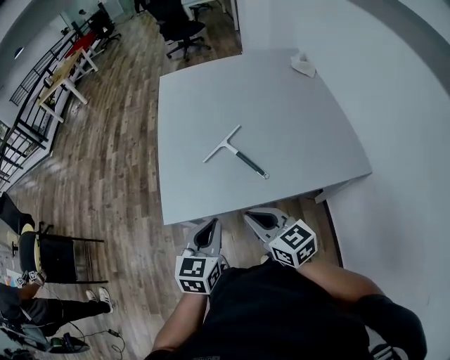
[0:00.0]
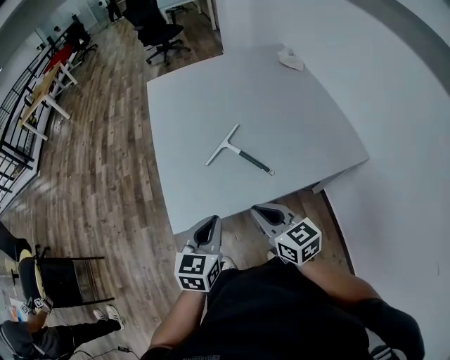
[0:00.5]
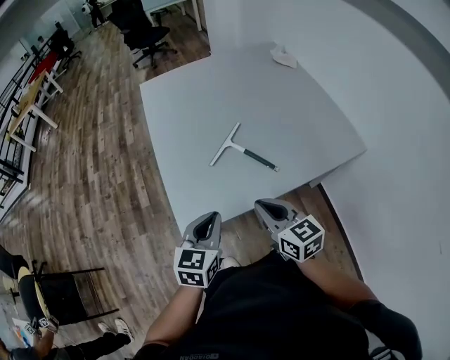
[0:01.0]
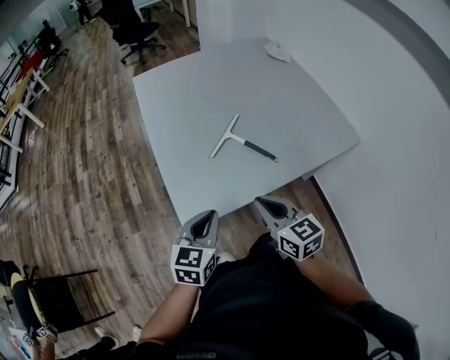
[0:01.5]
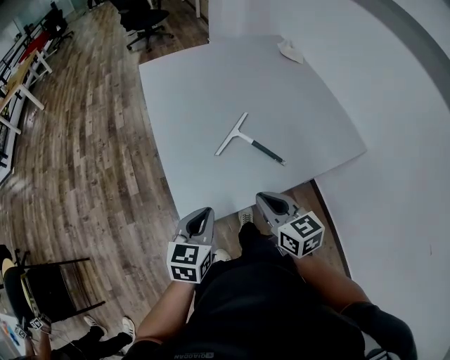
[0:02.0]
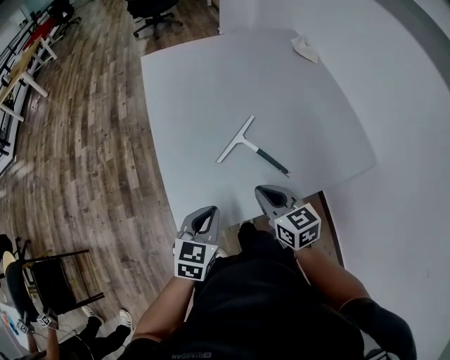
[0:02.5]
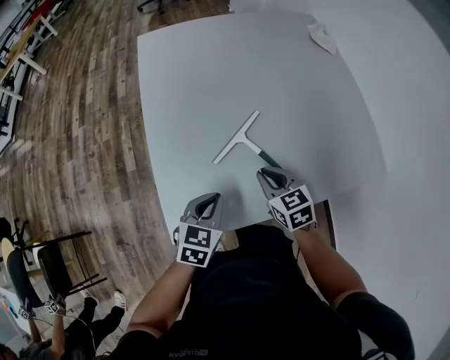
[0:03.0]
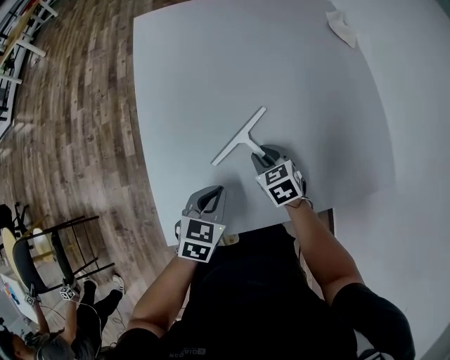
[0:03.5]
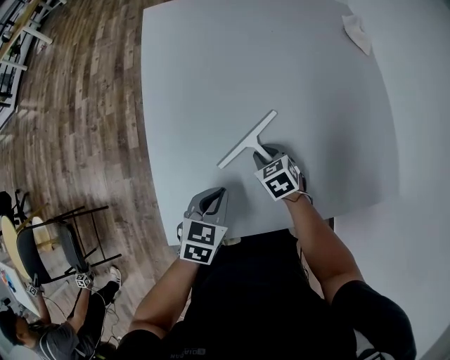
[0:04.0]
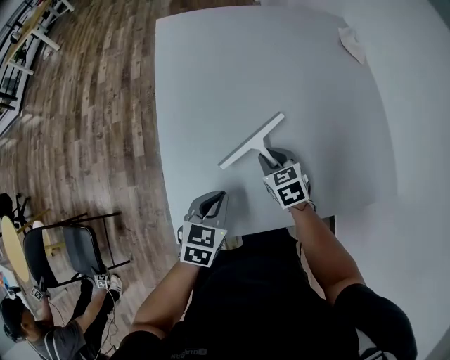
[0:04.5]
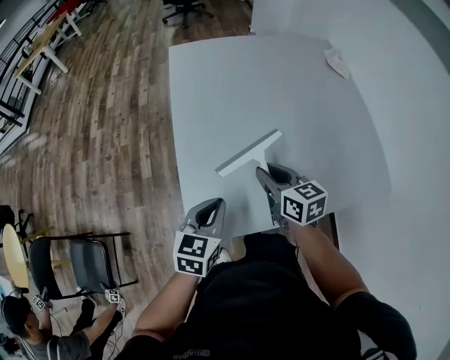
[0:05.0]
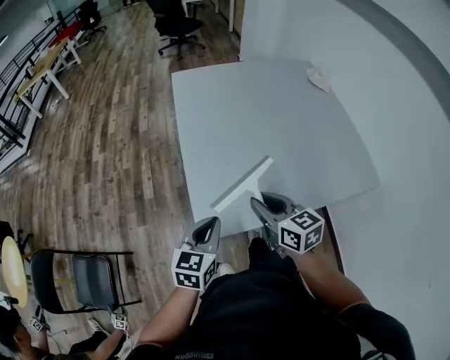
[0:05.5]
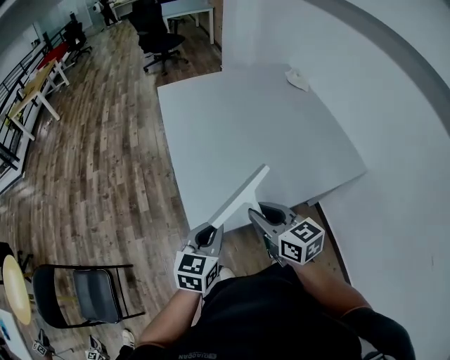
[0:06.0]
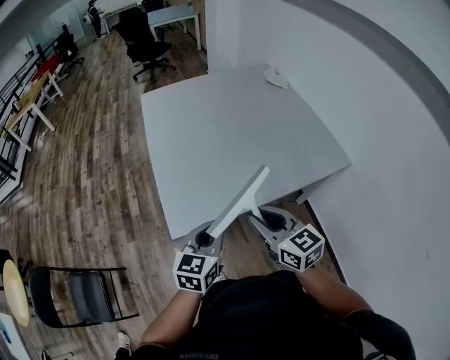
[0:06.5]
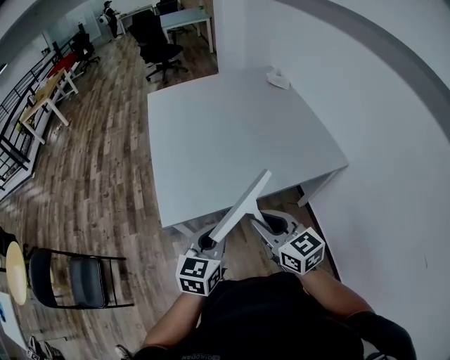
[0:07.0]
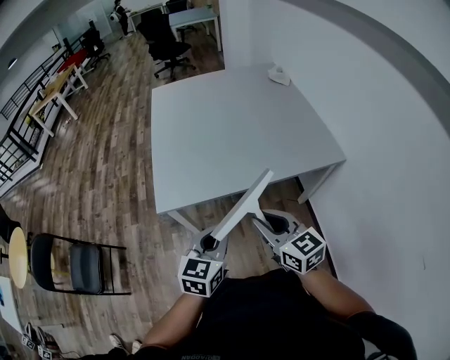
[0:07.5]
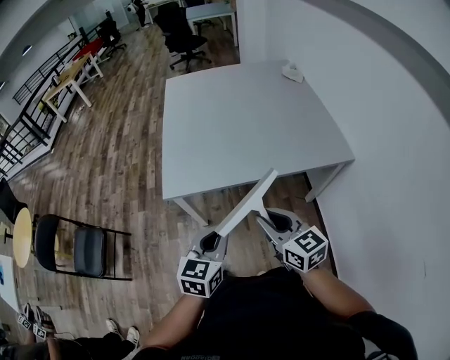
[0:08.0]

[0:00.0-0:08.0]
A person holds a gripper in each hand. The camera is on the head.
0:00.0 to 0:02.0: The two grippers go approximately 15 cm to the left. The right gripper rotates about 20 degrees.
0:02.0 to 0:04.0: The right gripper goes roughly 35 cm forward and downward, angles its fingers downward, by about 30 degrees, and opens. Meanwhile the left gripper moves forward, downward and to the right, approximately 25 cm.
0:04.0 to 0:06.0: The left gripper moves backward, upward and to the left, roughly 25 cm, and turns by about 20 degrees. Meanwhile the right gripper is displaced upward and backward by about 40 cm, and tips its fingers upward by approximately 40 degrees.
0:06.0 to 0:08.0: The grippers both shift backward and to the right by roughly 30 cm.

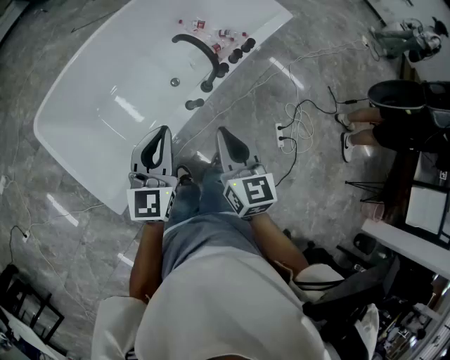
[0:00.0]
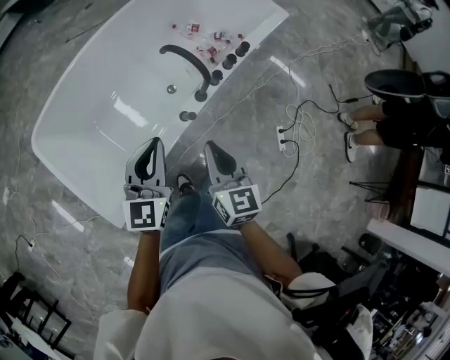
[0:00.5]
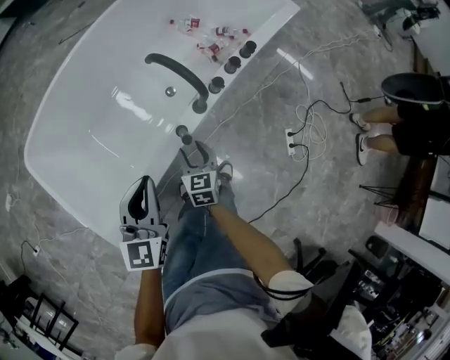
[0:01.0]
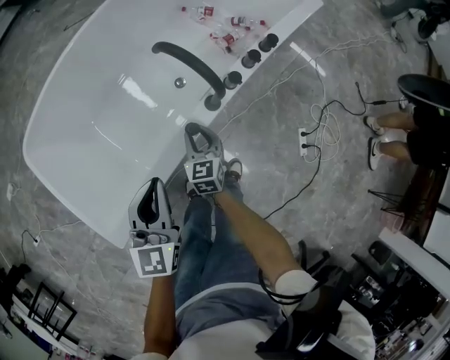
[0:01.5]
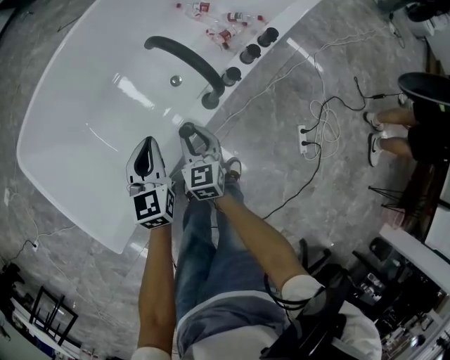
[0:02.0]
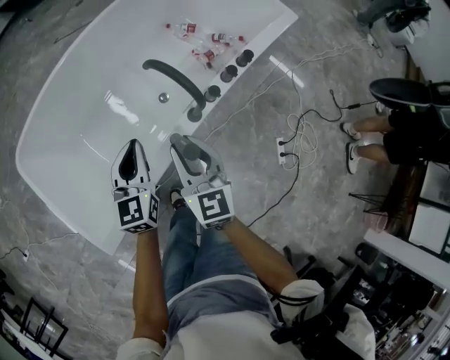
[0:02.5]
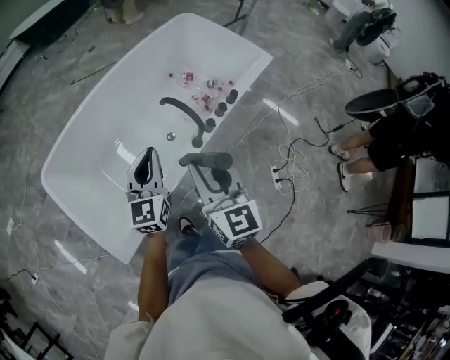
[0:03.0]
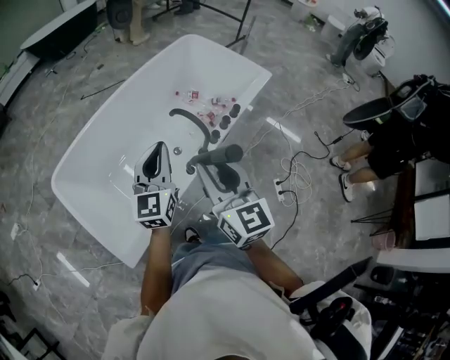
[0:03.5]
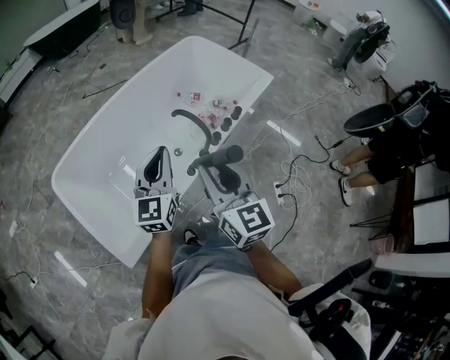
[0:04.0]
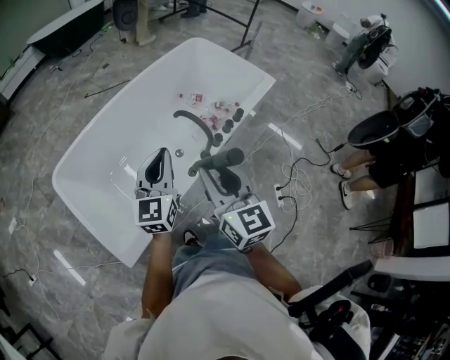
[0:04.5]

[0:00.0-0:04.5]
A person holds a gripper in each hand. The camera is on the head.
0:00.0 to 0:02.0: The two grippers go about 50 cm downward and forward. The right gripper opens, while the left gripper changes its angle by some 20 degrees.
0:02.0 to 0:04.5: Both grippers travel together upward and backward, some 70 cm. The right gripper turns by some 30 degrees. Meanwhile the left gripper turns by some 30 degrees.

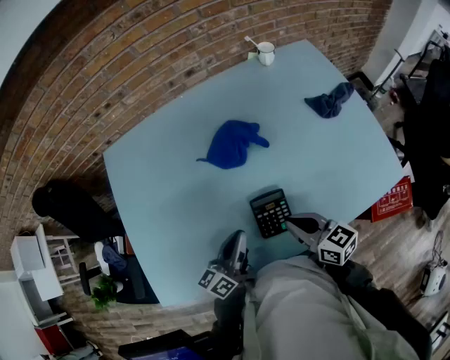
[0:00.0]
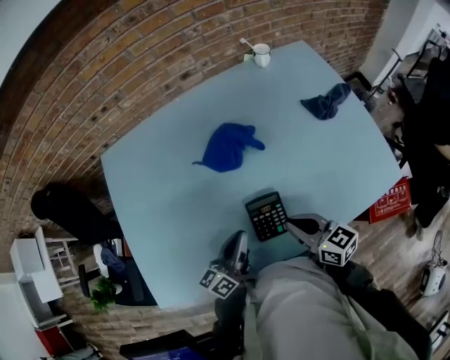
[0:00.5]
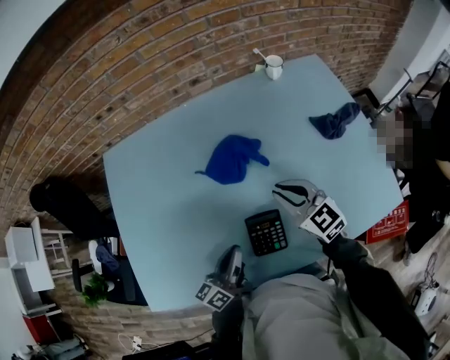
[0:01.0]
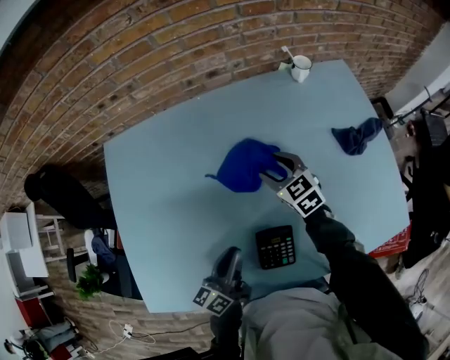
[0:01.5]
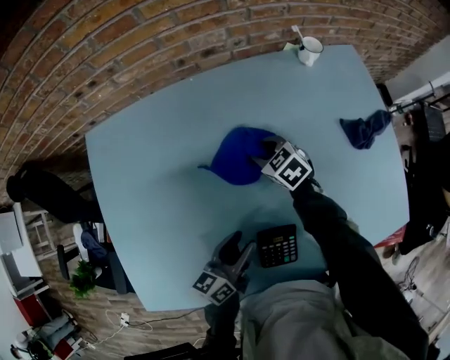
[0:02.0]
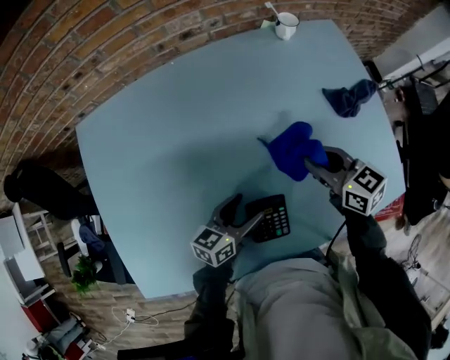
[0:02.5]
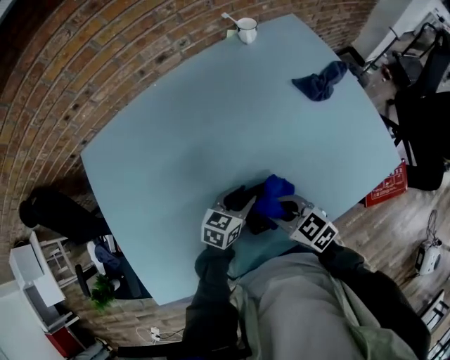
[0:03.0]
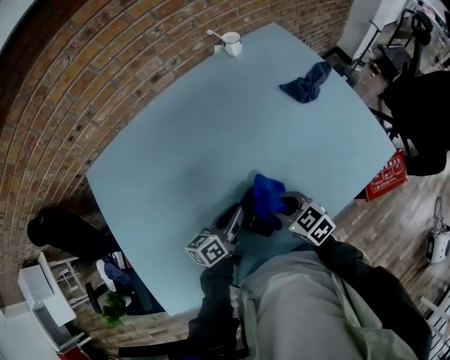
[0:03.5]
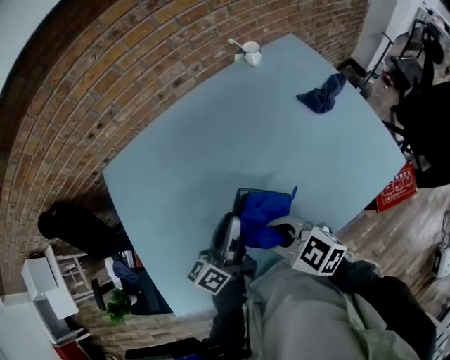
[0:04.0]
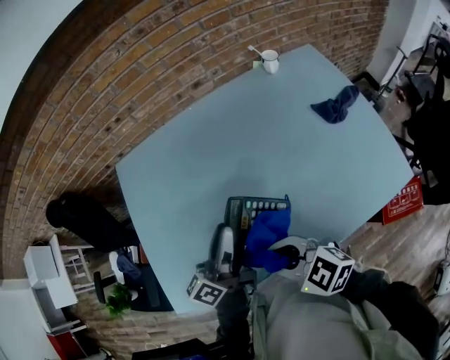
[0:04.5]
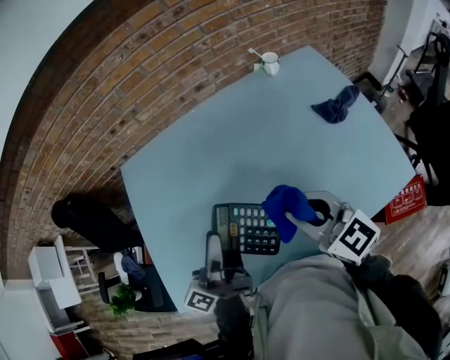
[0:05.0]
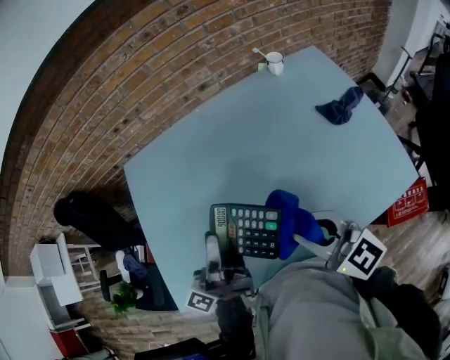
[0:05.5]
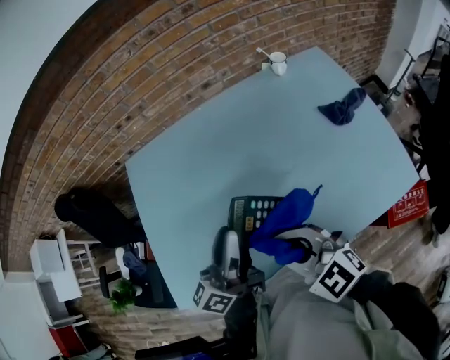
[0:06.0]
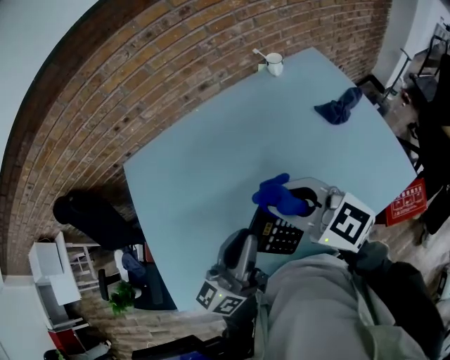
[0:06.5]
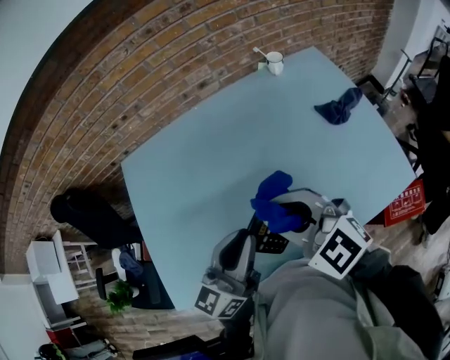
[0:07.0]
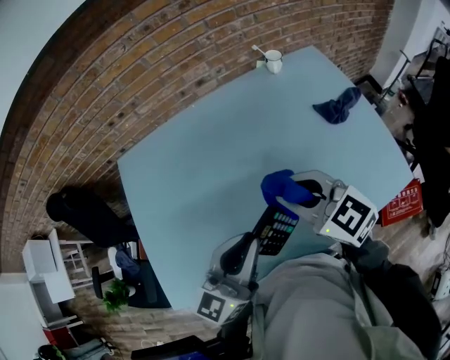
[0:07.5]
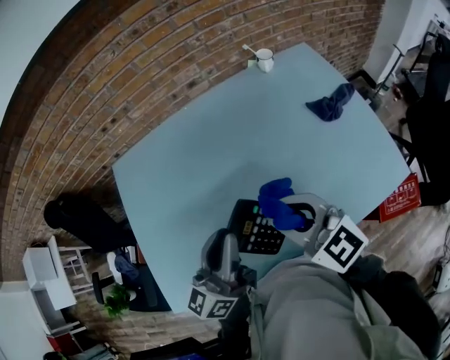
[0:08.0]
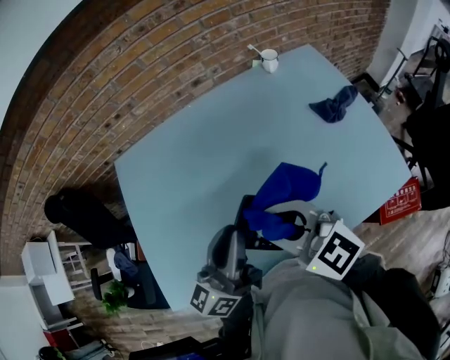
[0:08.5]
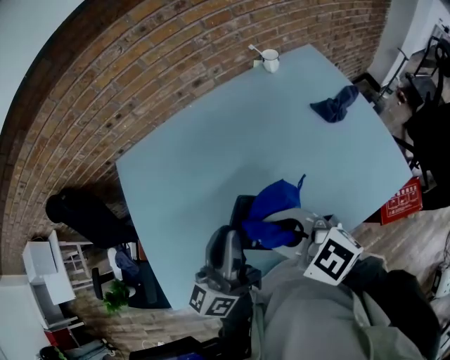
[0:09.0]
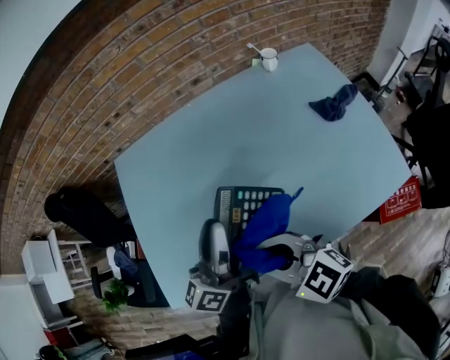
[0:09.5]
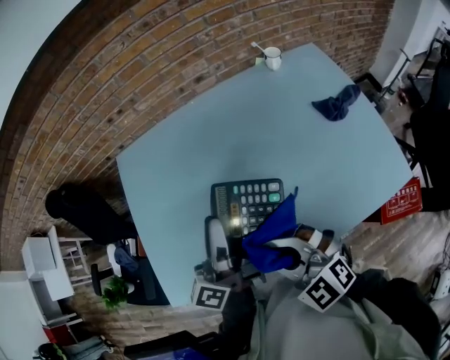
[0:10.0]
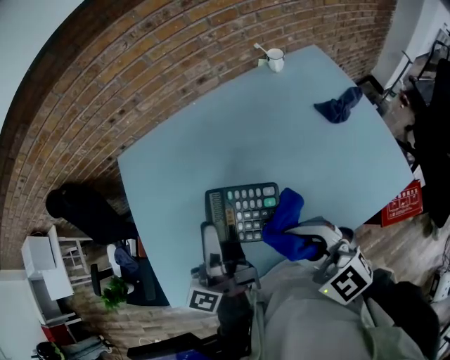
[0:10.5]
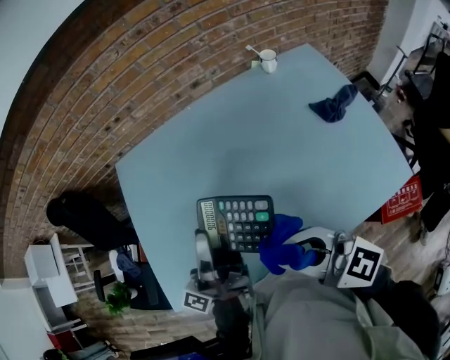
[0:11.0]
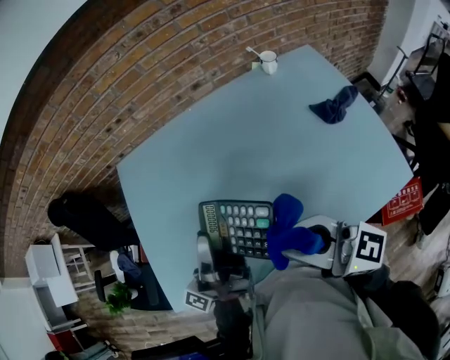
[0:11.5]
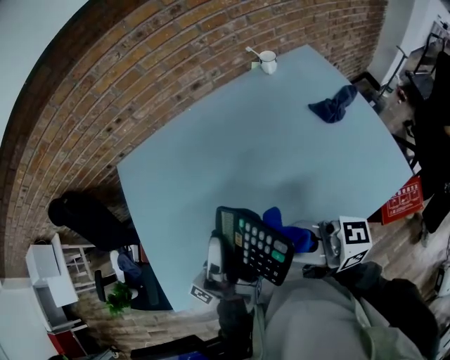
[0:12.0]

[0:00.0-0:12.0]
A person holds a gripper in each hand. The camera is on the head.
0:00.0 to 0:02.0: The left gripper heads forward and downward, covering about 10 cm, and opens, while the right gripper is displaced forward by roughly 35 cm, rotates about 40 degrees, and opens.
0:02.0 to 0:04.0: The right gripper heads backward and upward, covering approximately 35 cm, and changes its angle by roughly 20 degrees. The left gripper is displaced upward by some 15 cm, and closes.
0:04.0 to 0:06.0: The grippers both shift upward by approximately 10 cm. The right gripper reaches about 5 cm to the right, then returns.
0:06.0 to 0:08.0: The right gripper is displaced forward by about 5 cm.
0:08.0 to 0:10.0: The left gripper swivels roughly 30 degrees. Meanwhile the right gripper goes roughly 10 cm to the left and backward, and rotates some 20 degrees.
0:10.0 to 0:12.0: The right gripper goes some 10 cm upward and to the right, and points its fingers some 50 degrees further upward, while the left gripper changes its angle by approximately 40 degrees.

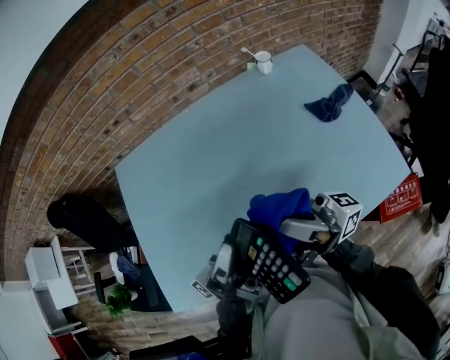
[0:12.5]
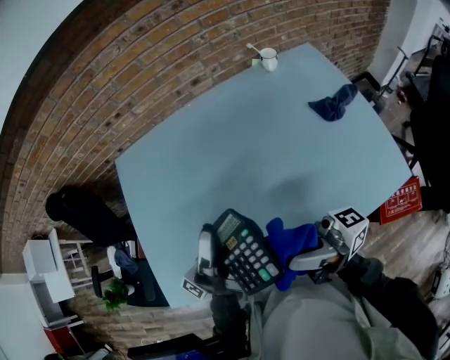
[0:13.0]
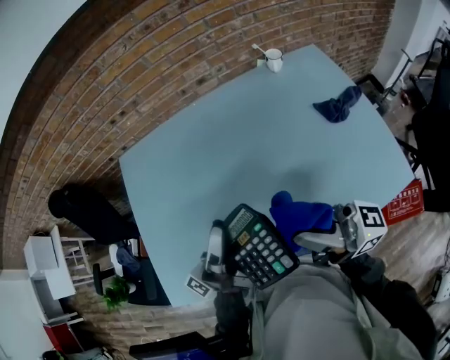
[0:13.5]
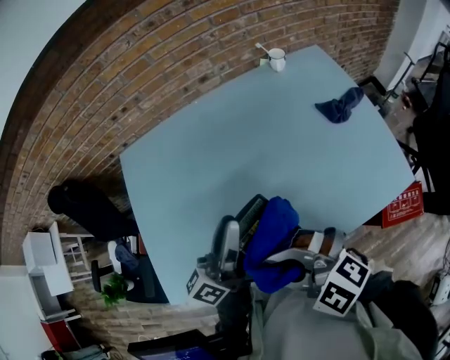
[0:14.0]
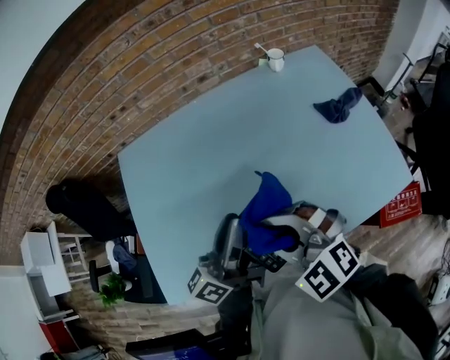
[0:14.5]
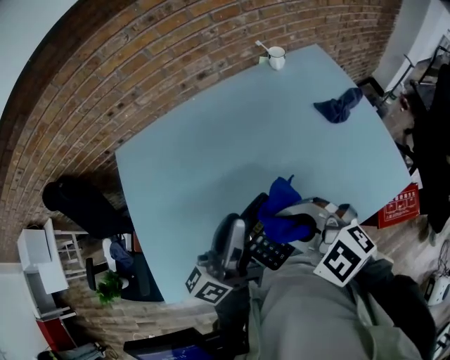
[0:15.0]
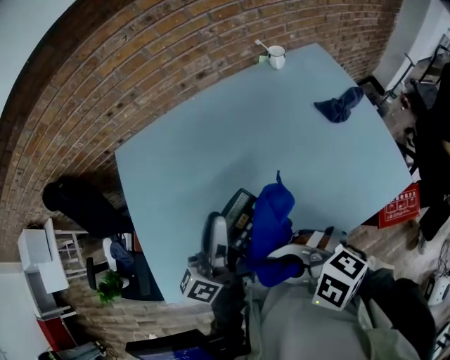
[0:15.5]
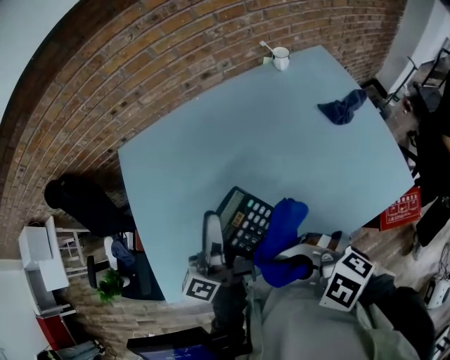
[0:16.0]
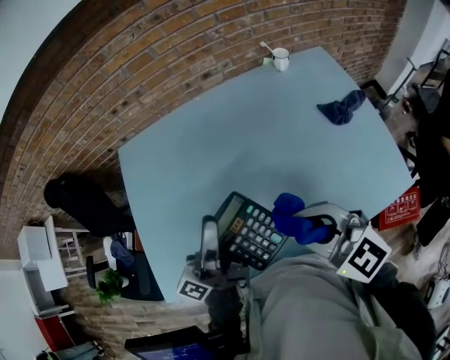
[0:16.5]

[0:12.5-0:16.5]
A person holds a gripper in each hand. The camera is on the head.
0:12.5 to 0:14.5: The right gripper is displaced to the left and downward by some 10 cm, and angles its fingers downward, by some 70 degrees. The left gripper changes place by about 5 cm, and rotates around the line of its fingers by approximately 40 degrees, clockwise from behind.
0:14.5 to 0:16.5: The left gripper shifts by approximately 5 cm.
